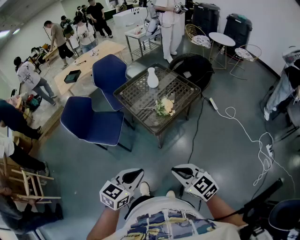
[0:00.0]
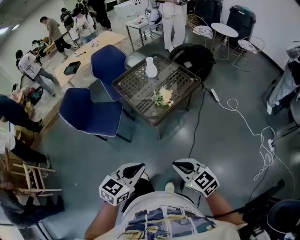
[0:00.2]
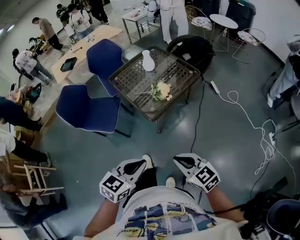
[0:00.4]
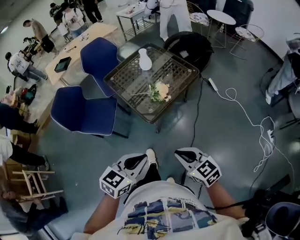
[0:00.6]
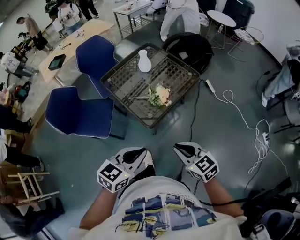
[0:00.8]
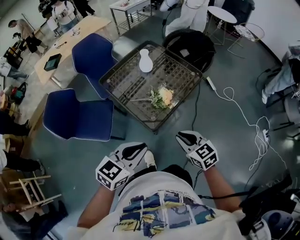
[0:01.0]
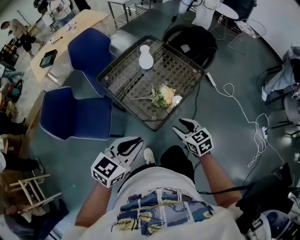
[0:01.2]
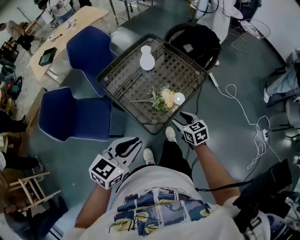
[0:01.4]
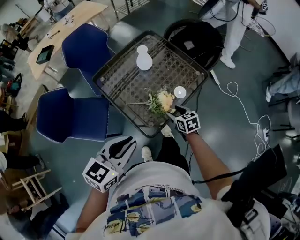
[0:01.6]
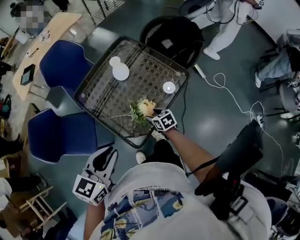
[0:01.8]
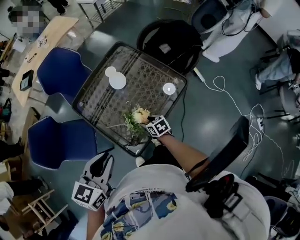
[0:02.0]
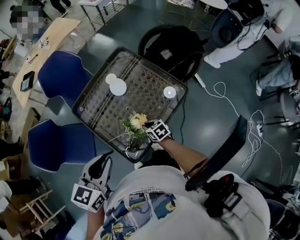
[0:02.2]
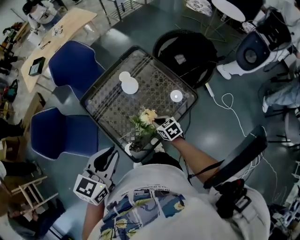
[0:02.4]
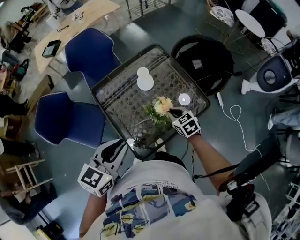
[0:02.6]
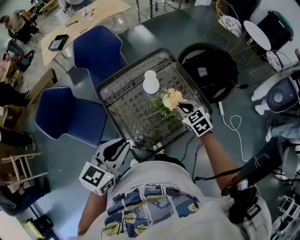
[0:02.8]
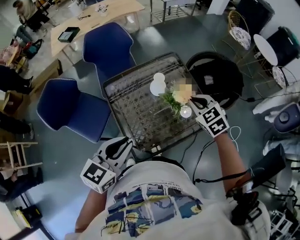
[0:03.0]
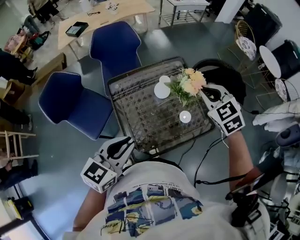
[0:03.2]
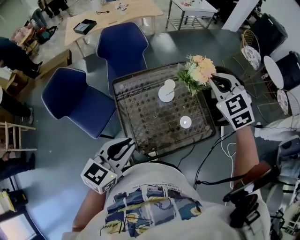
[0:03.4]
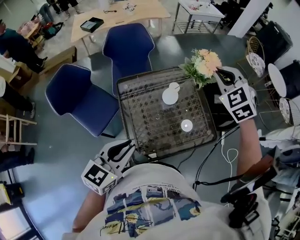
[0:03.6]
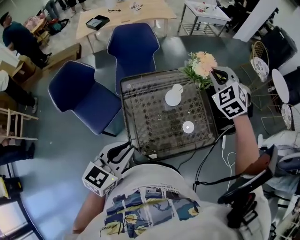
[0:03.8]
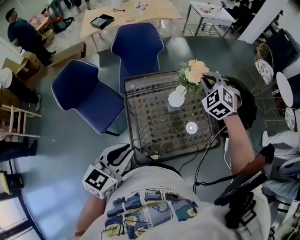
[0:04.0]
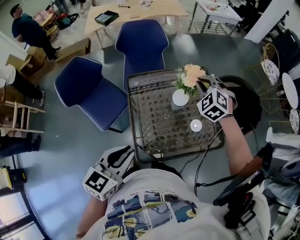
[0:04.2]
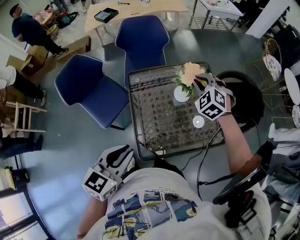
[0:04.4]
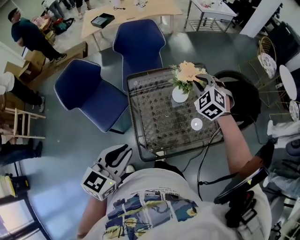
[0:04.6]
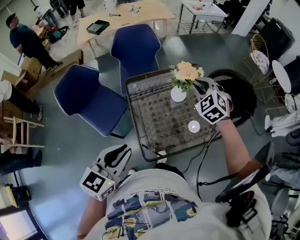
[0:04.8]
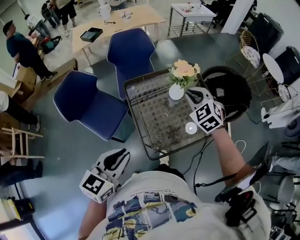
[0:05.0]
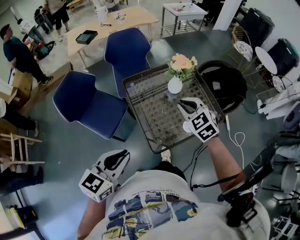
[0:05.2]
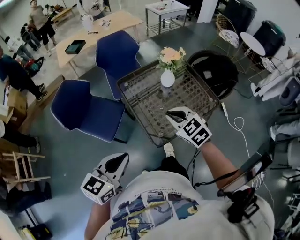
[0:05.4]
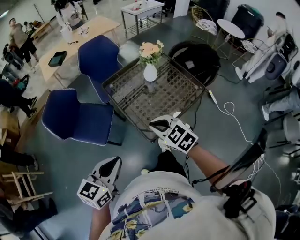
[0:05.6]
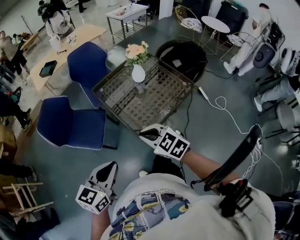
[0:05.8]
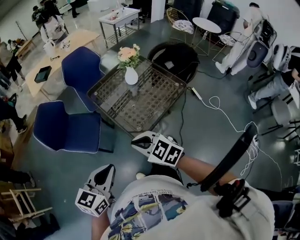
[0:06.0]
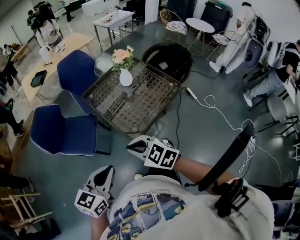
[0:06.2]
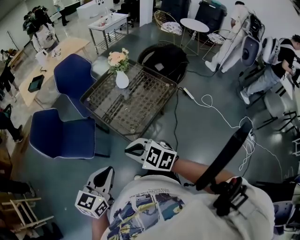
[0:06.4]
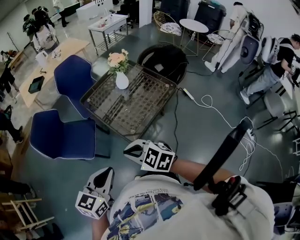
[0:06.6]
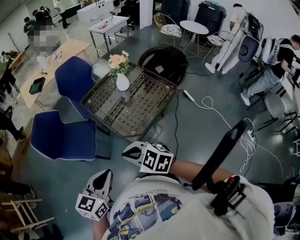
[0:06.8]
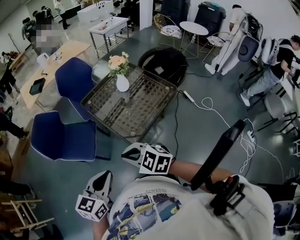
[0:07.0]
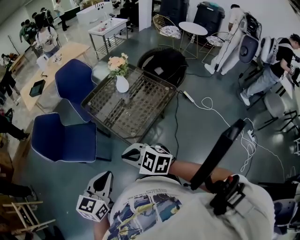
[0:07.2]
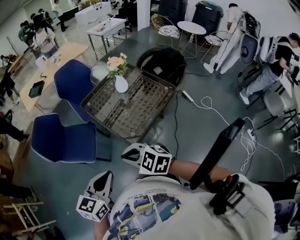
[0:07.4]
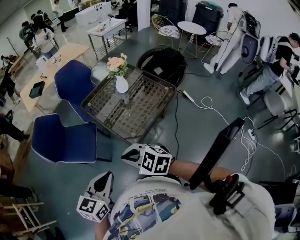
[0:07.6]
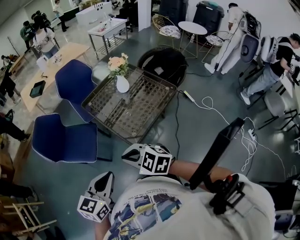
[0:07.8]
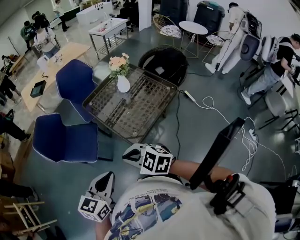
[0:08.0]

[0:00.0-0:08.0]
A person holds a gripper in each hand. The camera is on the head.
0:00.0 to 0:01.6: The right gripper shifts approximately 60 cm forward and downward, rotates roughly 30 degrees, and opens. Meanwhile the left gripper travels forward by some 35 cm.
0:01.6 to 0:03.2: The left gripper moves forward, about 15 cm, and rotates some 30 degrees. The right gripper is displaced upward and forward by some 40 cm, twists roughly 50 degrees counterclockwise, seen from behind, and closes up.
0:03.2 to 0:04.8: The right gripper goes up and down, approximately 15 cm each way, reversing 2 times. Meanwhile the left gripper goes approximately 10 cm to the left and backward.
0:04.8 to 0:06.4: The left gripper goes some 20 cm backward, and rotates some 20 degrees. The right gripper shifts some 50 cm backward and to the left, and swivels some 40 degrees.
0:06.4 to 0:08.0: The grippers stay close to where they were, moving slightly.

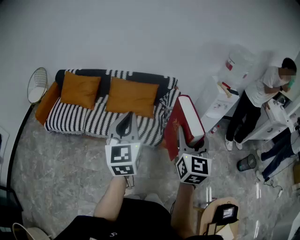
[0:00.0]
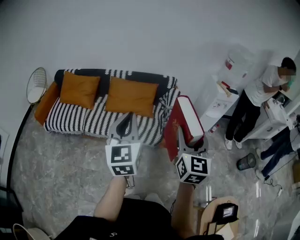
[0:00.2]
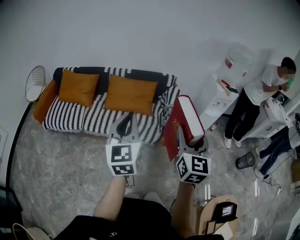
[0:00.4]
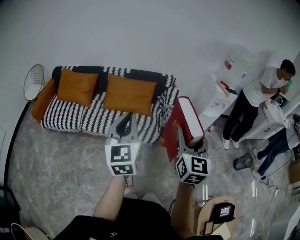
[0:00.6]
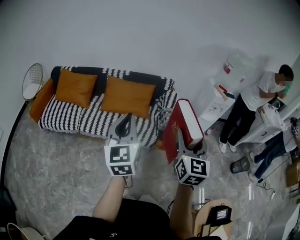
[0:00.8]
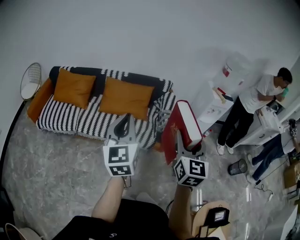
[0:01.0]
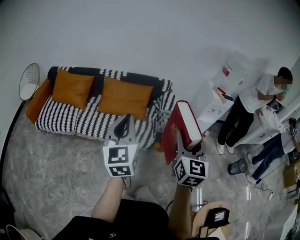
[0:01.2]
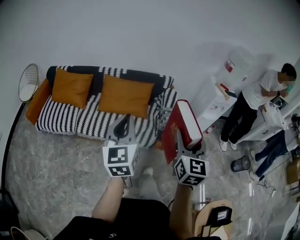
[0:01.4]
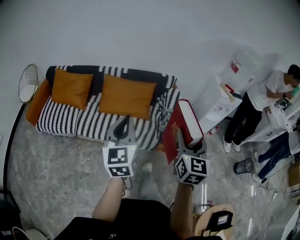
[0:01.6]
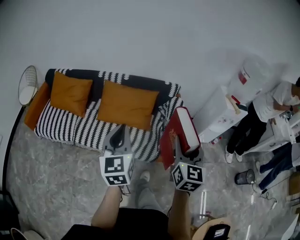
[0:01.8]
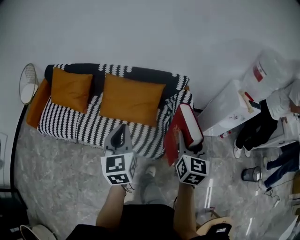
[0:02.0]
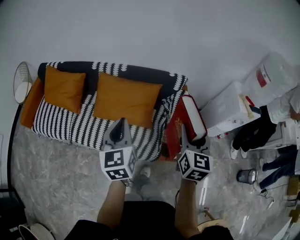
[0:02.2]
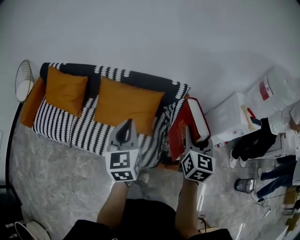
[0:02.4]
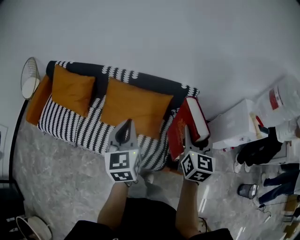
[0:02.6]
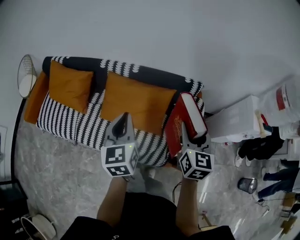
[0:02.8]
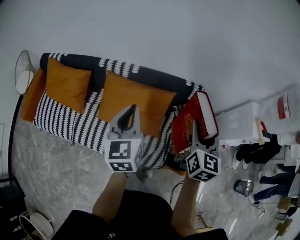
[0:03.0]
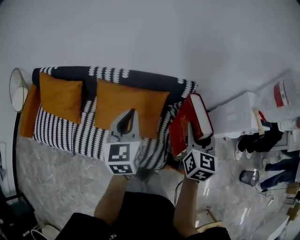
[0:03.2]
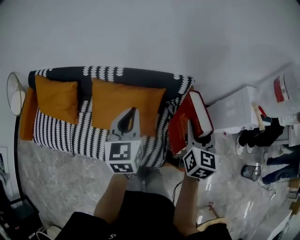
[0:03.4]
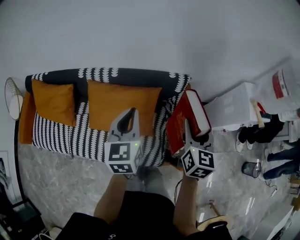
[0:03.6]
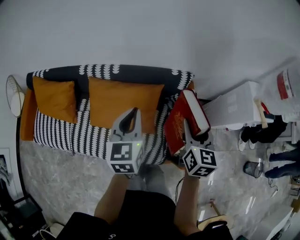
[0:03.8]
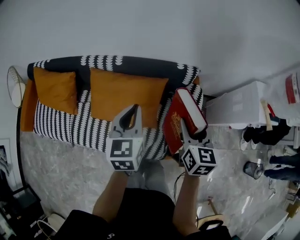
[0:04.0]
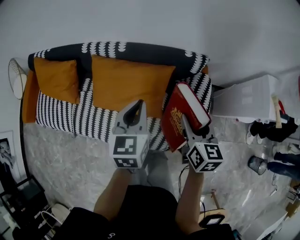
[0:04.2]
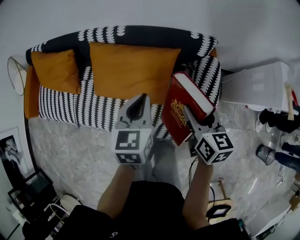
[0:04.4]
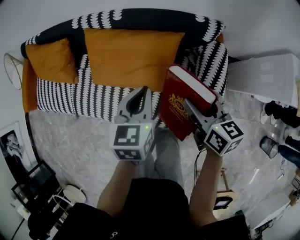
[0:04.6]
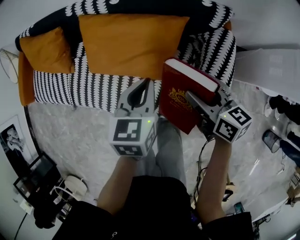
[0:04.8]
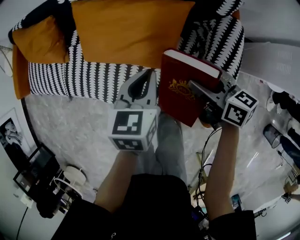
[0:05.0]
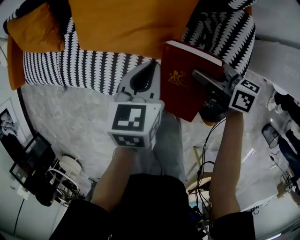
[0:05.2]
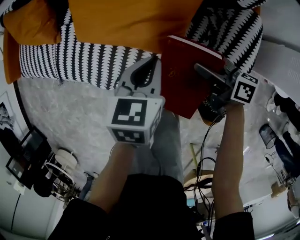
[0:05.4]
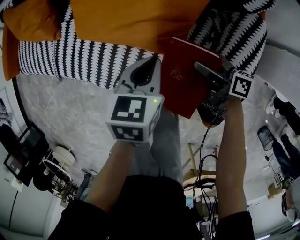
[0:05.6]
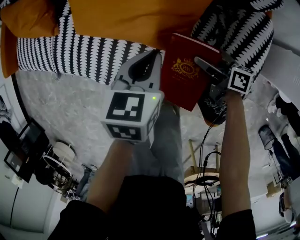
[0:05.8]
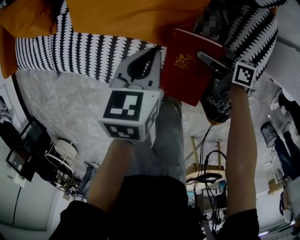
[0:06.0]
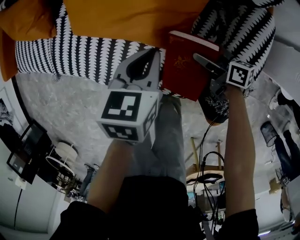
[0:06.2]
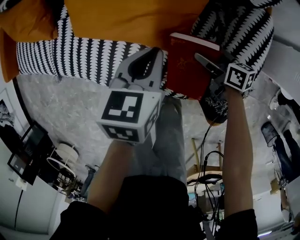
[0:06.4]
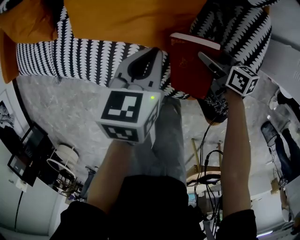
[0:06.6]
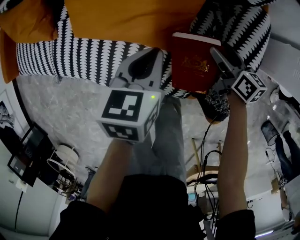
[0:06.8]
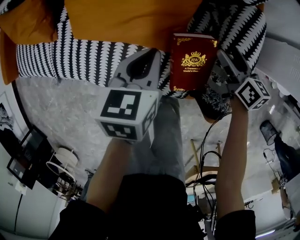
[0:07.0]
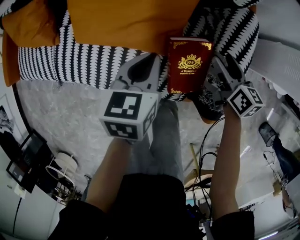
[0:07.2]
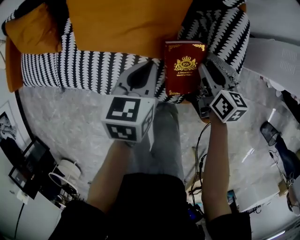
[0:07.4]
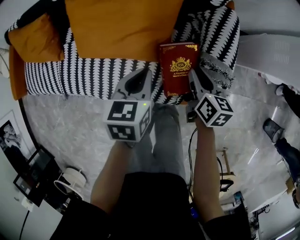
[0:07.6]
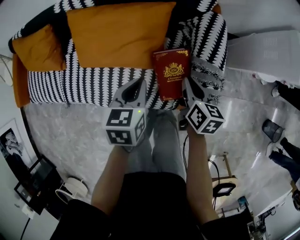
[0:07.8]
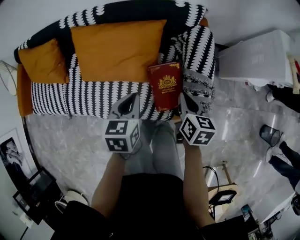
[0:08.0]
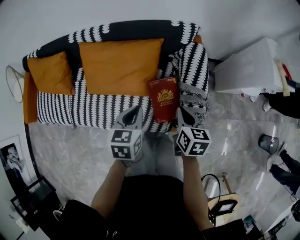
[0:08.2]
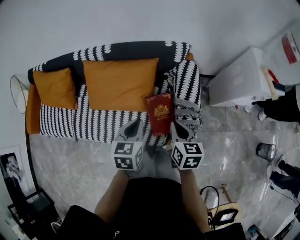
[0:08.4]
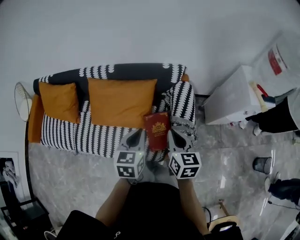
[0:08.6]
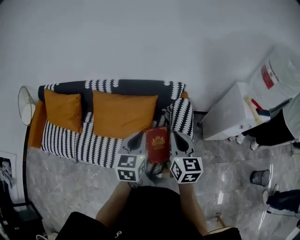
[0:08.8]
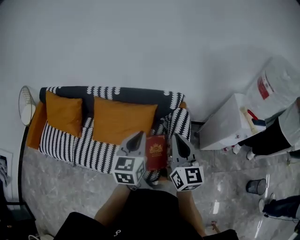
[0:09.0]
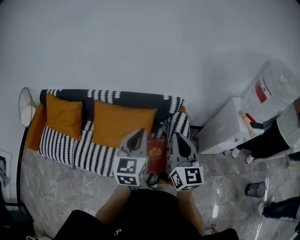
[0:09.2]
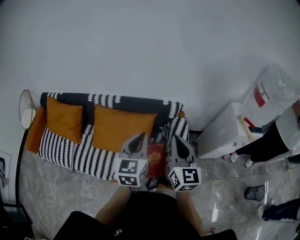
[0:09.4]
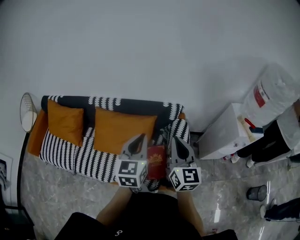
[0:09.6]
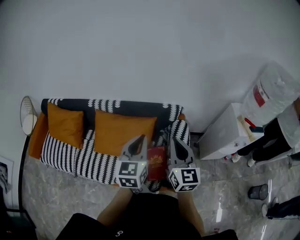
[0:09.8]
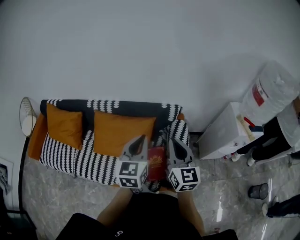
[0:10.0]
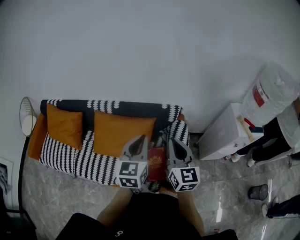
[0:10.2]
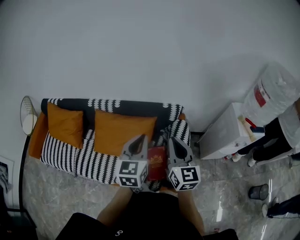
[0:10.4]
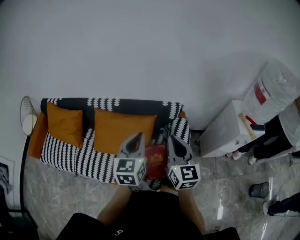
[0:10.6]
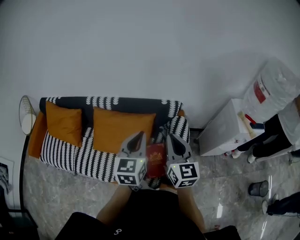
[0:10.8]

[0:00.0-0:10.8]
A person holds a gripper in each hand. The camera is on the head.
0:00.0 to 0:01.6: The two grippers go some 15 cm forward and downward.
0:01.6 to 0:03.0: Both grippers are carried forward, about 40 cm.
0:03.0 to 0:04.6: The left gripper is displaced downward and to the right by some 20 cm, and changes its angle by some 20 degrees, while the right gripper is displaced downward by approximately 20 cm, and turns by some 40 degrees.
0:04.6 to 0:06.2: The right gripper heads downward, covering some 30 cm, and swivels approximately 40 degrees; the left gripper moves downward, some 20 cm.
0:06.2 to 0:07.8: The left gripper travels upward by some 10 cm; the right gripper heads upward, covering roughly 15 cm, swivels about 50 degrees, and closes up.
0:07.8 to 0:09.2: The two grippers go approximately 35 cm upward. The left gripper tilts its fingers roughly 40 degrees upward. Meanwhile the right gripper tips its fingers upward by approximately 40 degrees.
0:09.2 to 0:10.8: The grippers move only a little.

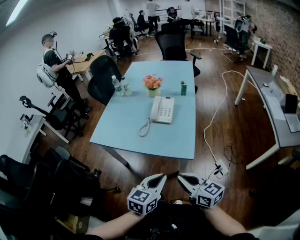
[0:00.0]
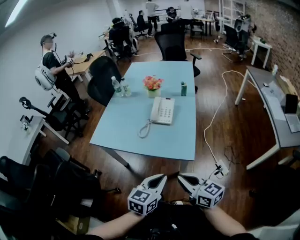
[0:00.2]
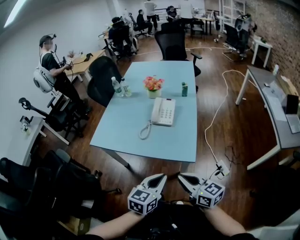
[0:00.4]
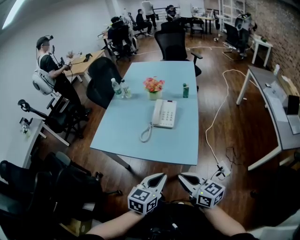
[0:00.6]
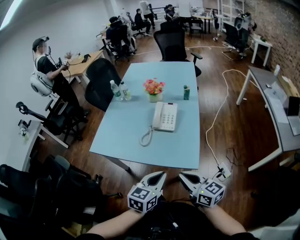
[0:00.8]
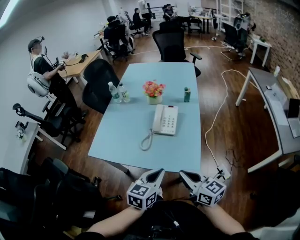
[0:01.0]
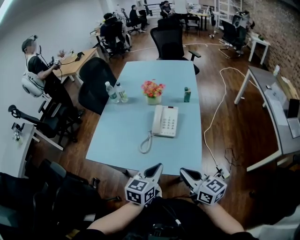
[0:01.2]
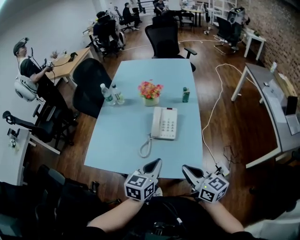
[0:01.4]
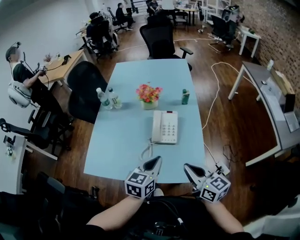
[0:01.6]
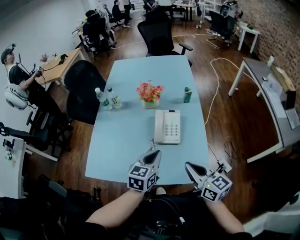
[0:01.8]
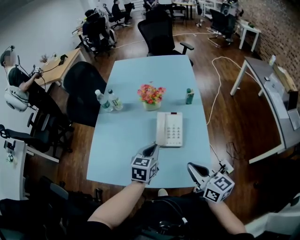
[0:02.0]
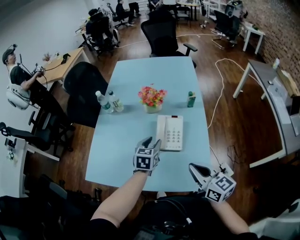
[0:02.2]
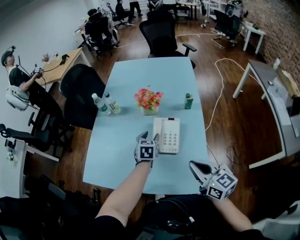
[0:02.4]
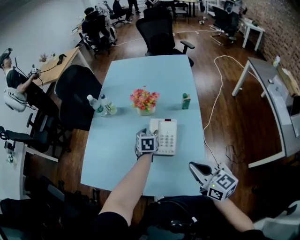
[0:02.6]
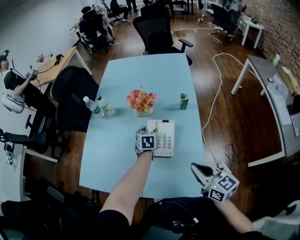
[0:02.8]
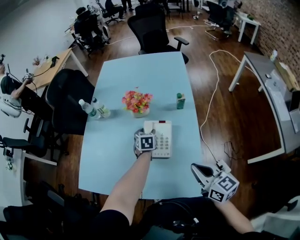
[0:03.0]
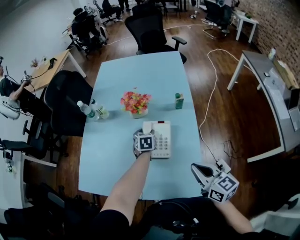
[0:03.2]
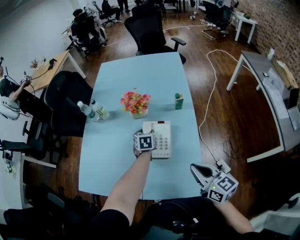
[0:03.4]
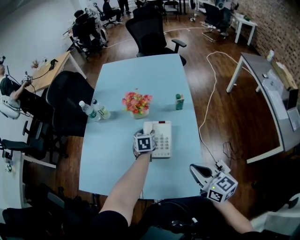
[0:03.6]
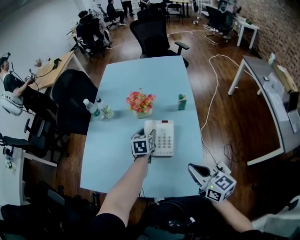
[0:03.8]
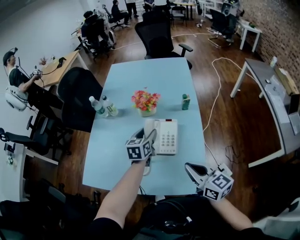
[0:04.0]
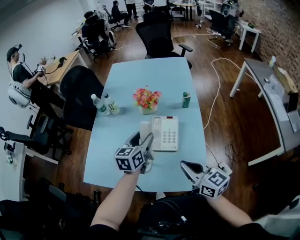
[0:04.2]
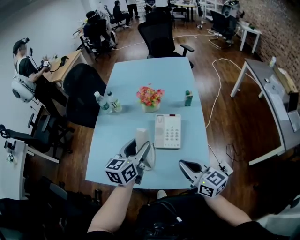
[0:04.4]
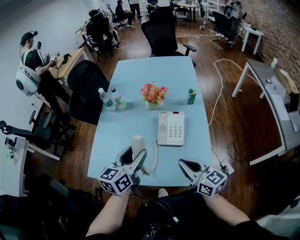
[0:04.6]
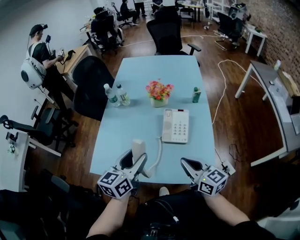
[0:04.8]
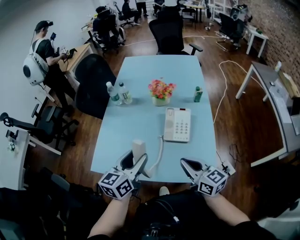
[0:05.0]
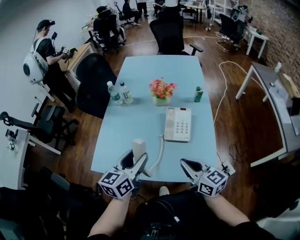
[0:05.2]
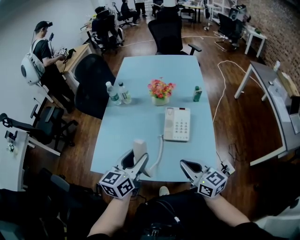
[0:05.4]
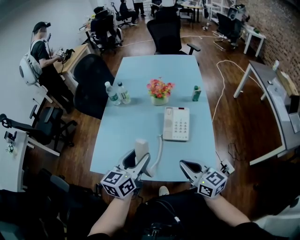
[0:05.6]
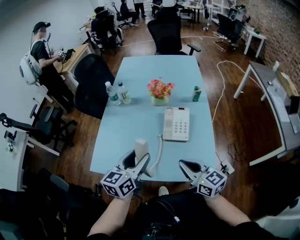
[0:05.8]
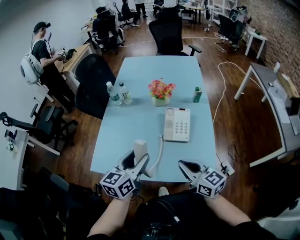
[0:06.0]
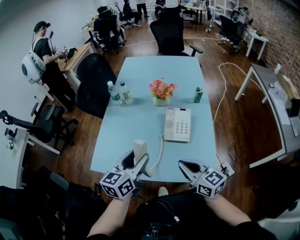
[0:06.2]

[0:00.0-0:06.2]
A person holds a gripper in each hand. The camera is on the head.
0:00.0 to 0:01.6: The grippers both shift forward by about 25 cm.
0:01.6 to 0:03.2: The left gripper goes some 35 cm forward and downward, rotates about 30 degrees, and opens. The right gripper goes about 15 cm to the right and forward.
0:03.2 to 0:04.6: The left gripper moves upward, backward and to the left, some 35 cm, and tips its fingers upward by roughly 40 degrees. The right gripper goes roughly 15 cm to the left.
0:04.6 to 0:06.2: The right gripper shifts by approximately 5 cm; the left gripper shifts by about 5 cm.
